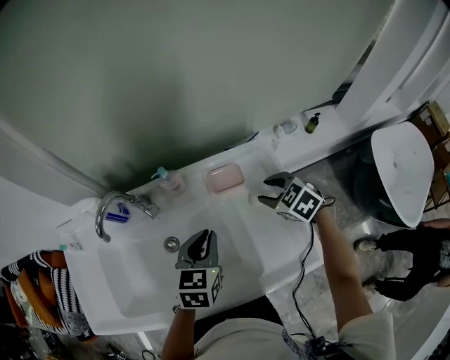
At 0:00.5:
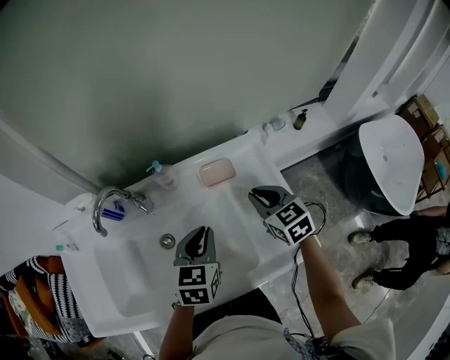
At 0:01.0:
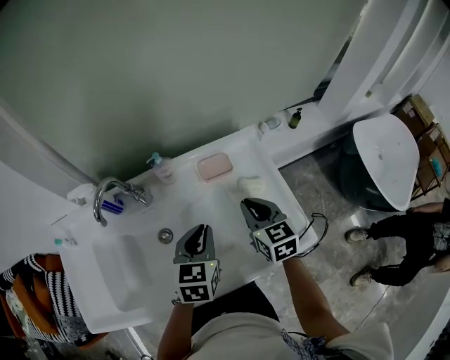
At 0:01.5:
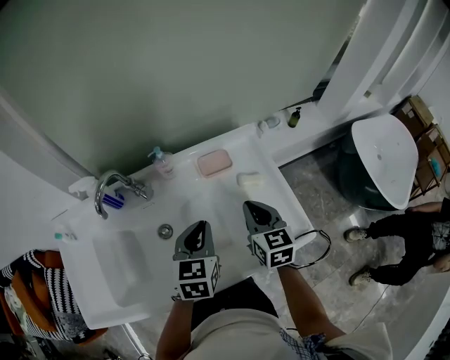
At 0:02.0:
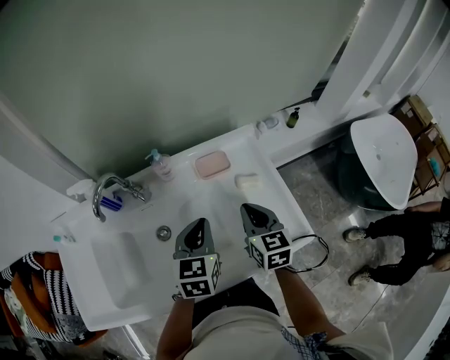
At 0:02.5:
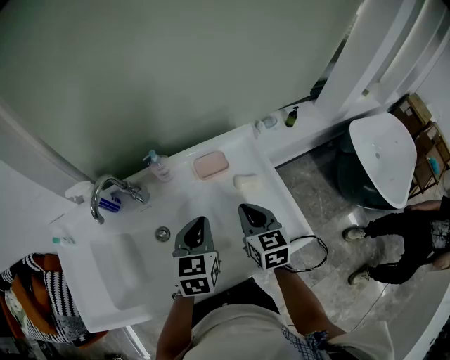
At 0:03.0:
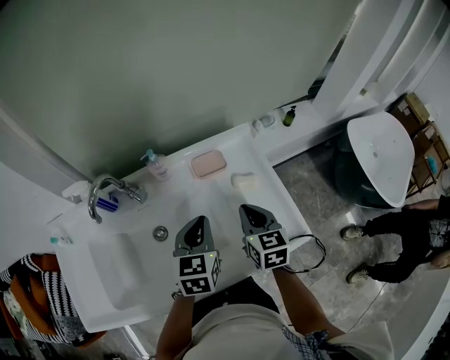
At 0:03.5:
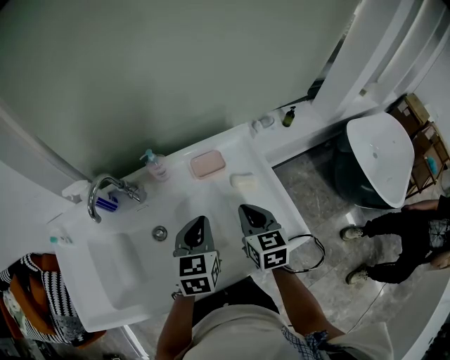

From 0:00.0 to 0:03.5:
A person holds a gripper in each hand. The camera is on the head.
From 0:00.0 to 0:02.0: The right gripper moves backward, about 10 cm, rotates about 50 degrees, and closes up.
From 0:02.0 to 0:03.5: Both grippers stay about where they are.

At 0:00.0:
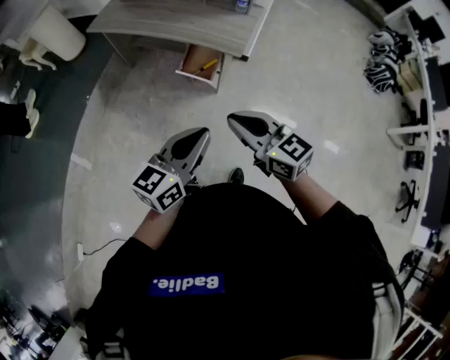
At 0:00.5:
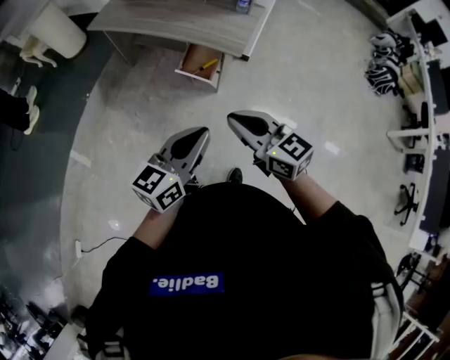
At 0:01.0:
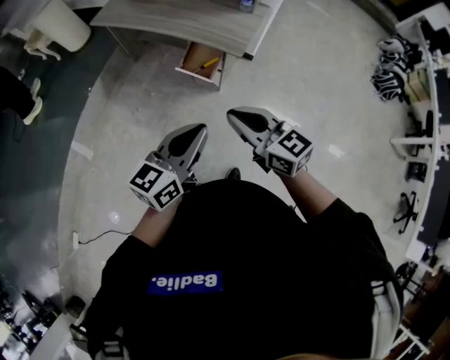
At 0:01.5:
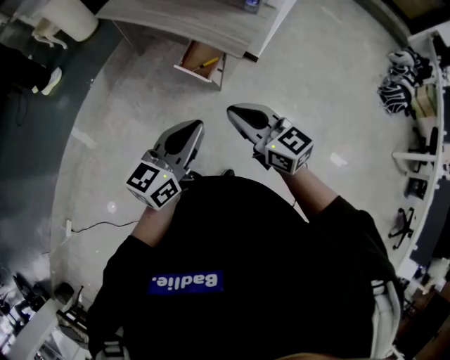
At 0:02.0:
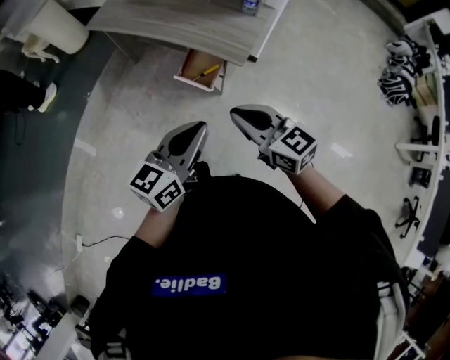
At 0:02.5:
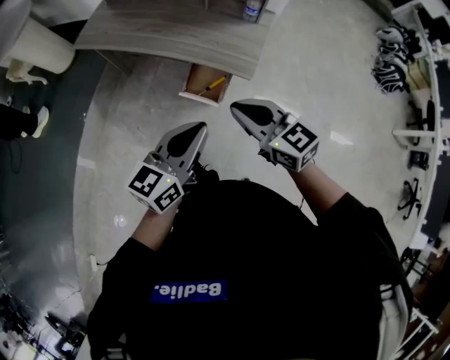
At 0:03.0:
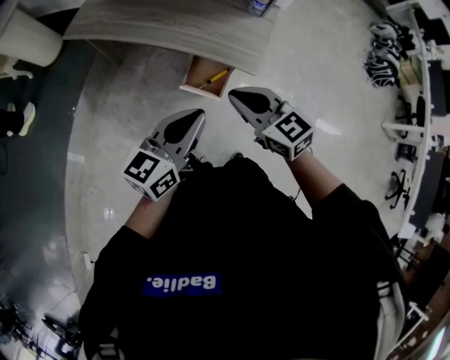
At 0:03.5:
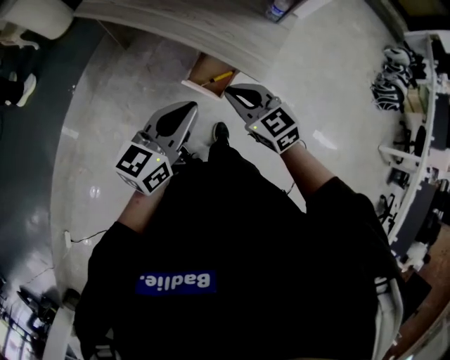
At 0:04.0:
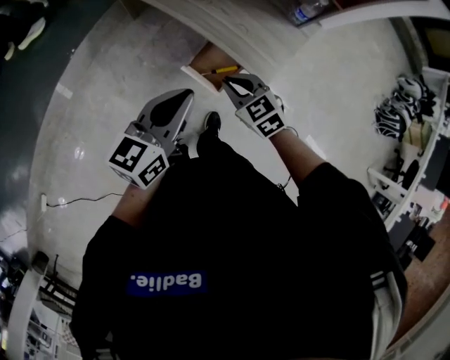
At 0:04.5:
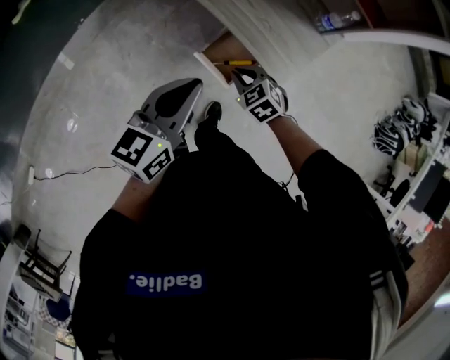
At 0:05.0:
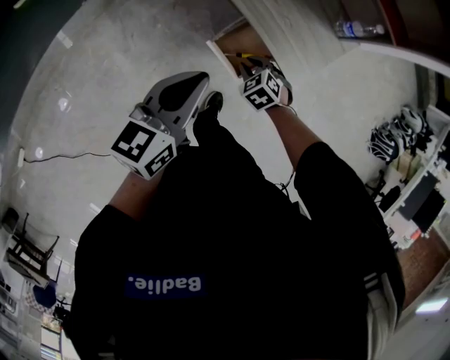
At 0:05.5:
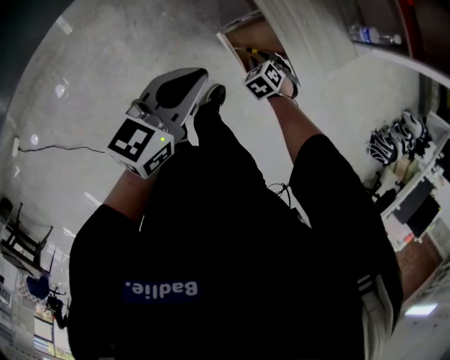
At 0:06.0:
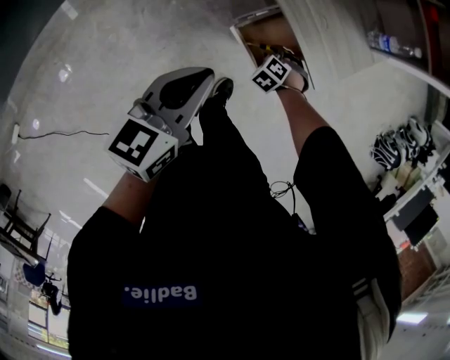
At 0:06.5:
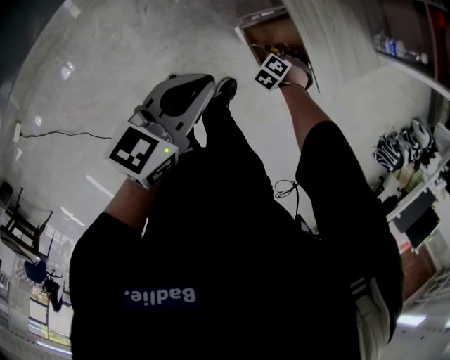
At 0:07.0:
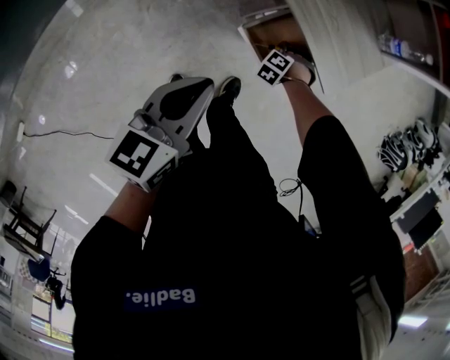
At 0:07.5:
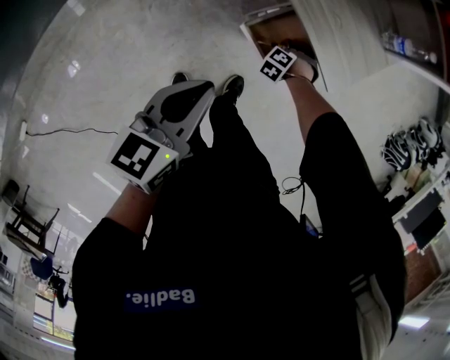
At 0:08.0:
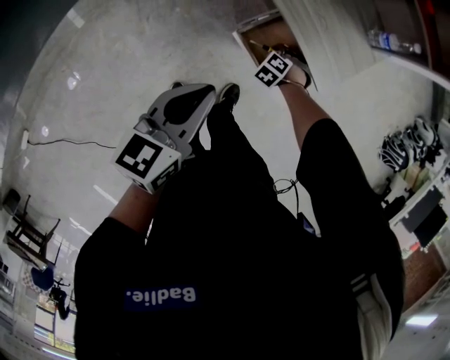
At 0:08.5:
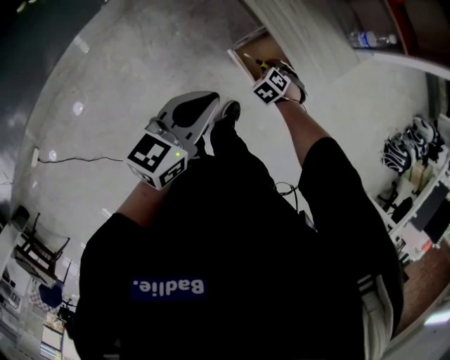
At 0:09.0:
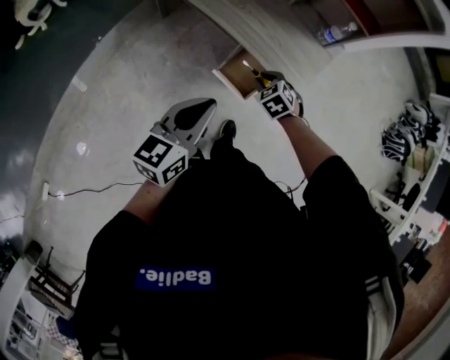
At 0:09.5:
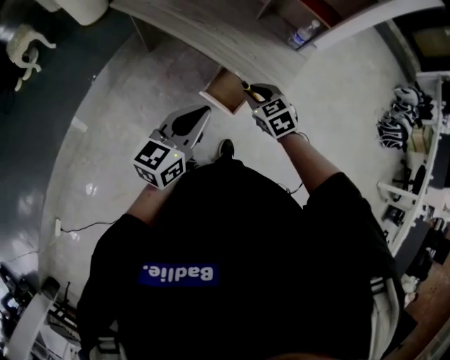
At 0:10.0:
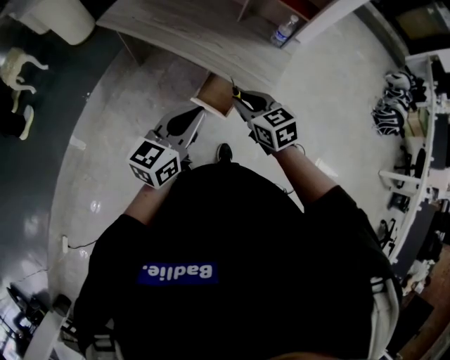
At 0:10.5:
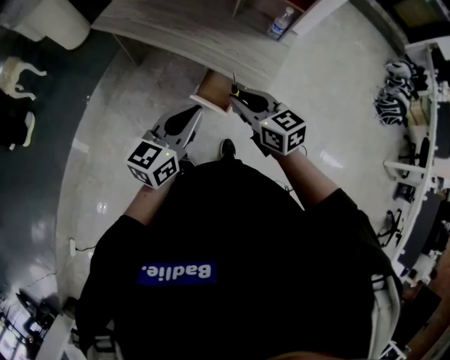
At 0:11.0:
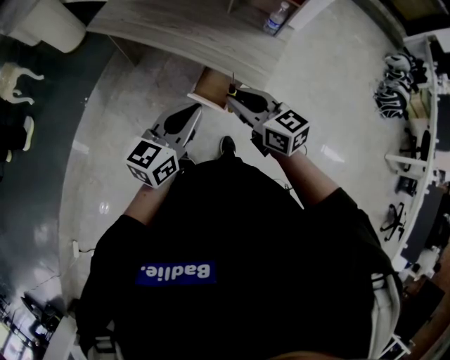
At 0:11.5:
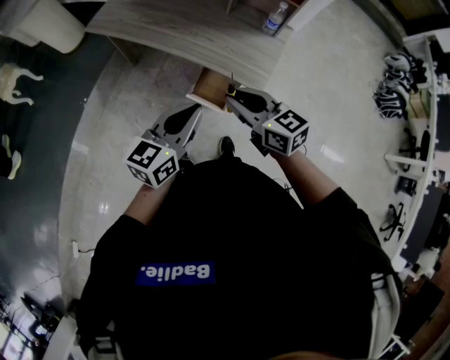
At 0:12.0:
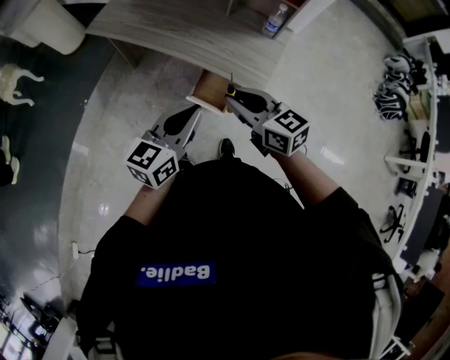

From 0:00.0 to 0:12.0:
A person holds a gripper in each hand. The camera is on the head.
From 0:00.0 to 0:02.0: The left gripper heads forward, covering roughly 10 cm. Meanwhile the right gripper is displaced forward and to the right by approximately 10 cm.
From 0:02.0 to 0:04.0: The right gripper goes about 30 cm forward and downward, and rotates roughly 40 degrees. The left gripper moves forward and to the left, roughly 25 cm.
From 0:04.0 to 0:06.0: The right gripper heads downward, covering about 30 cm, tilts its fingers approximately 30 degrees downward, and opens, while the left gripper is displaced downward by some 10 cm.
From 0:06.0 to 0:08.0: The grippers make only small movements.
From 0:08.0 to 0:10.0: The left gripper heads upward and to the right, covering some 15 cm, and turns by some 20 degrees. Meanwhile the right gripper heads upward, covering some 40 cm, and tilts its fingers some 40 degrees upward.
From 0:10.0 to 0:12.0: The right gripper shifts approximately 5 cm upward, and rotates approximately 20 degrees.

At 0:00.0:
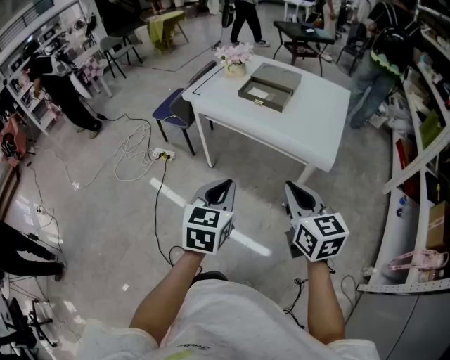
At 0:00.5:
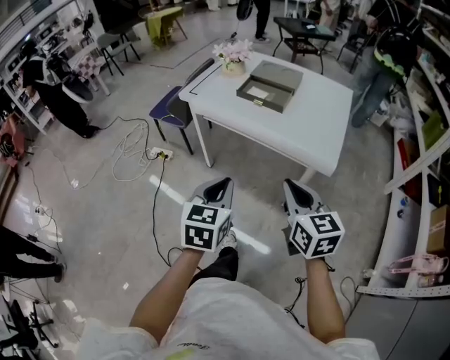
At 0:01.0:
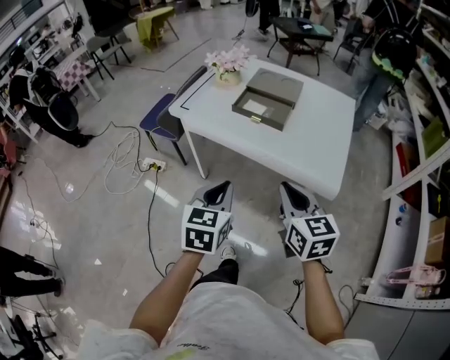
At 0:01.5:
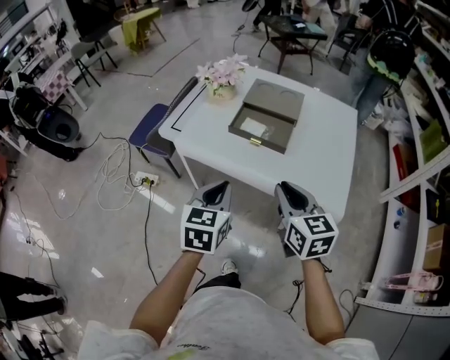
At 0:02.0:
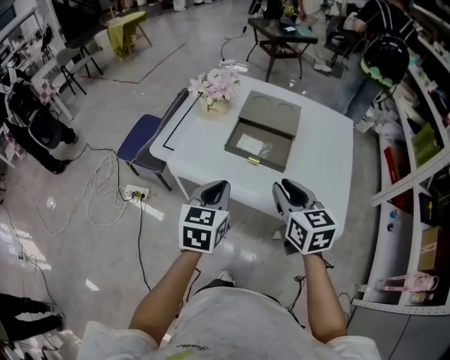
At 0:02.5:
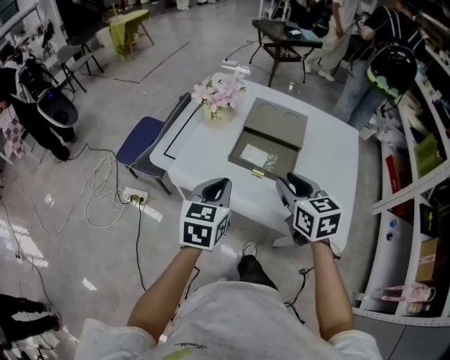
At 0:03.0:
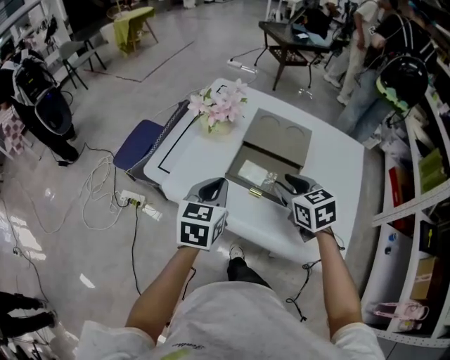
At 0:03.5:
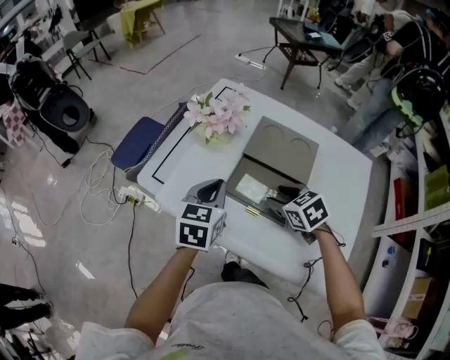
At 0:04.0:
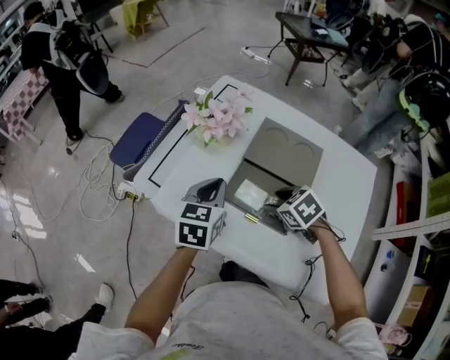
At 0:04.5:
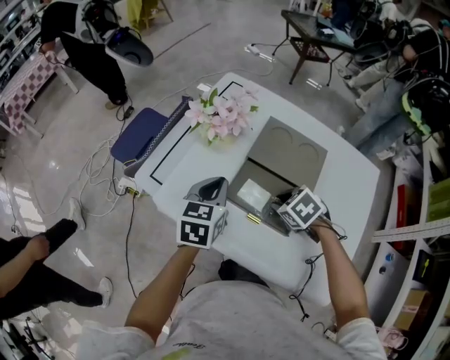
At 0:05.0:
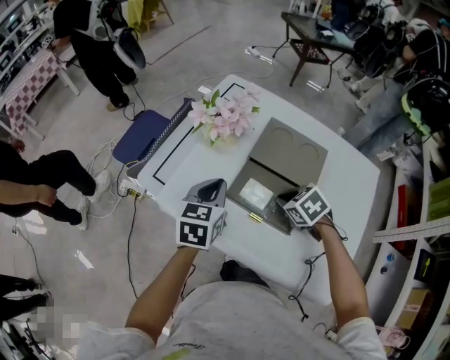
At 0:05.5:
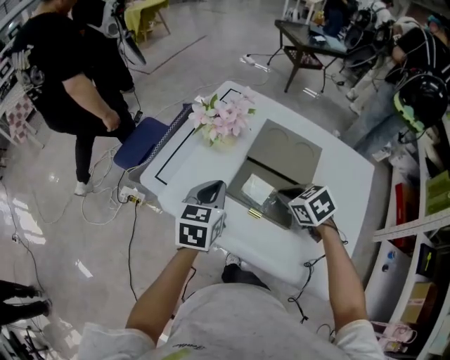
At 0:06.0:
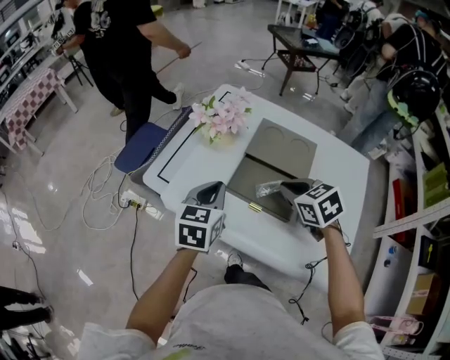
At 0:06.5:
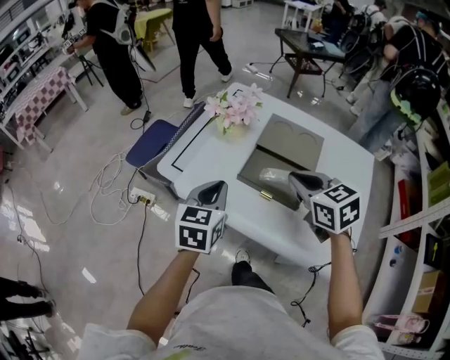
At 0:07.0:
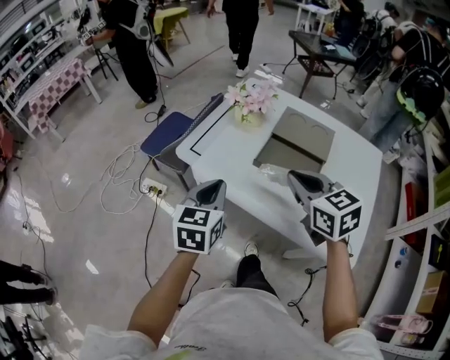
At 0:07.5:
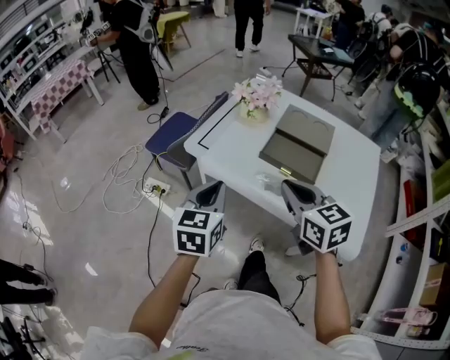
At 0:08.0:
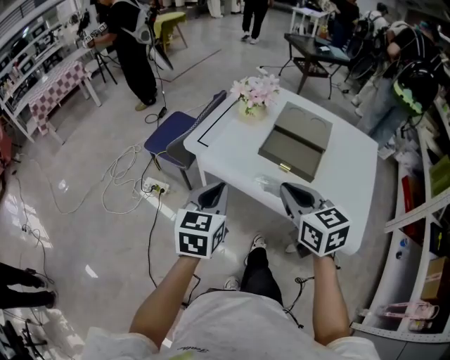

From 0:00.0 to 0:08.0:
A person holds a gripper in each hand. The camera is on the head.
From 0:00.0 to 0:02.0: The grippers both shift forward by approximately 35 cm. The right gripper opens its fingers.
From 0:02.0 to 0:04.0: The left gripper heads forward, covering about 20 cm. Meanwhile the right gripper is displaced forward and downward by about 25 cm, tips its fingers downward by approximately 40 degrees, and opens its fingers.
From 0:04.0 to 0:06.0: The right gripper moves upward, some 10 cm, and closes, while the left gripper ends up approximately 5 cm from where it was.
From 0:06.0 to 0:08.0: The right gripper goes roughly 25 cm backward, to the left and upward, and rotates approximately 30 degrees, while the left gripper moves backward and to the left, some 20 cm.

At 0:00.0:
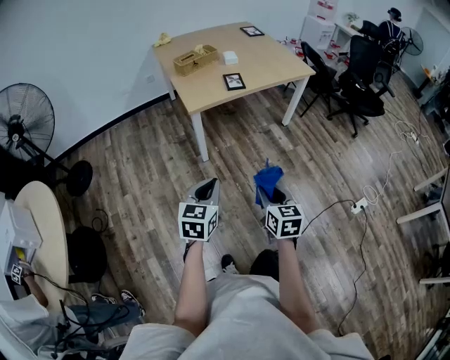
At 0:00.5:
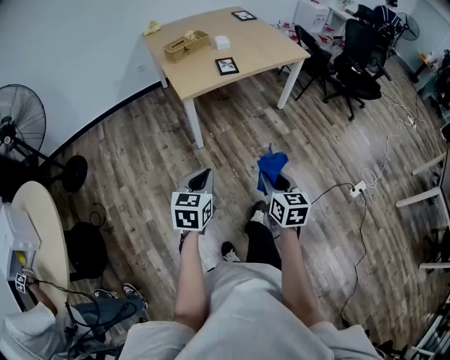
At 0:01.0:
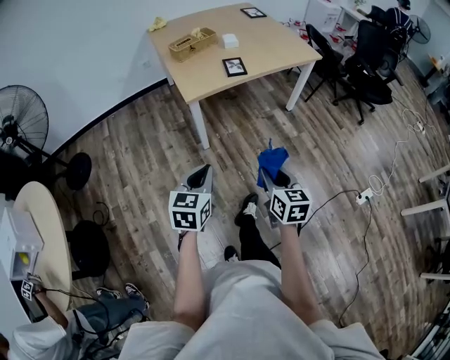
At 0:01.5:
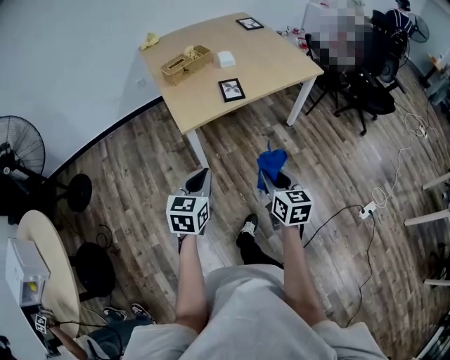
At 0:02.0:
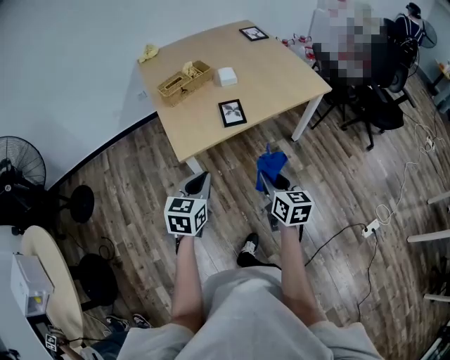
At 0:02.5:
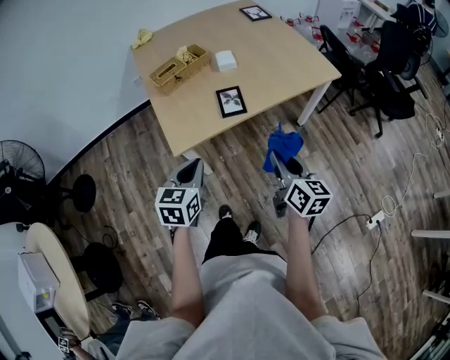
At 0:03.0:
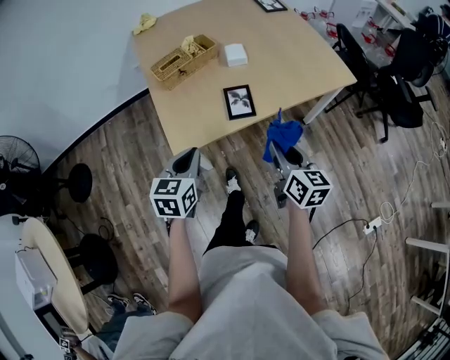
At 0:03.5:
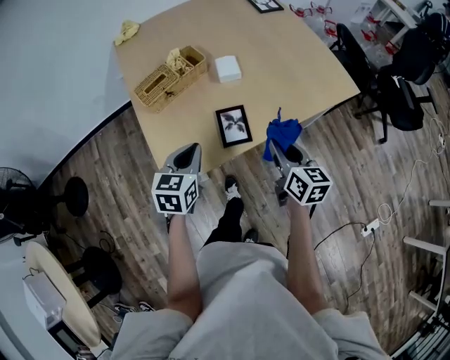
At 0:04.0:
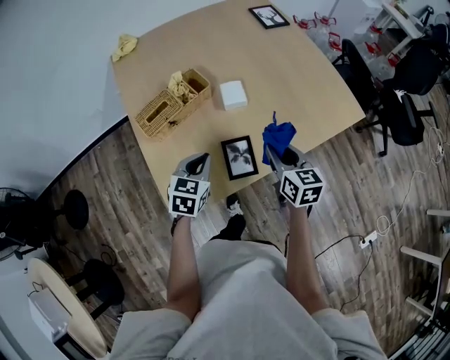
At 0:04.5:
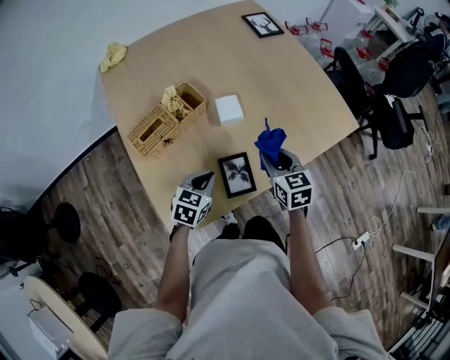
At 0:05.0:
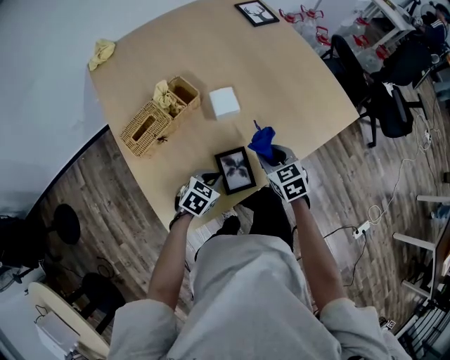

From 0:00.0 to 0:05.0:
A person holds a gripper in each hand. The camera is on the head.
From 0:00.0 to 0:02.5: Both grippers are carried forward, about 40 cm. The right gripper turns by some 20 degrees.
From 0:02.5 to 0:05.0: The left gripper travels forward and downward by roughly 40 cm, and changes its angle by roughly 40 degrees. The right gripper travels forward by approximately 40 cm, and angles its fingers downward, by approximately 30 degrees.
